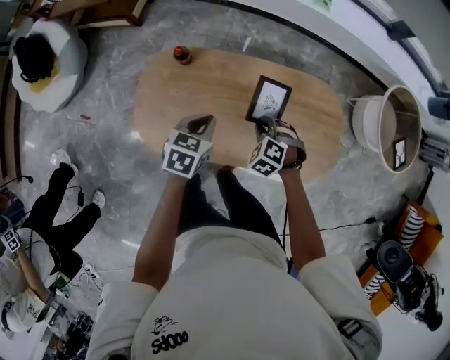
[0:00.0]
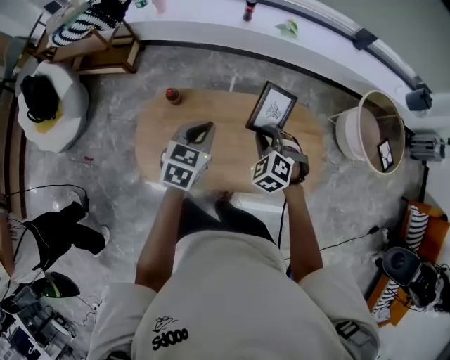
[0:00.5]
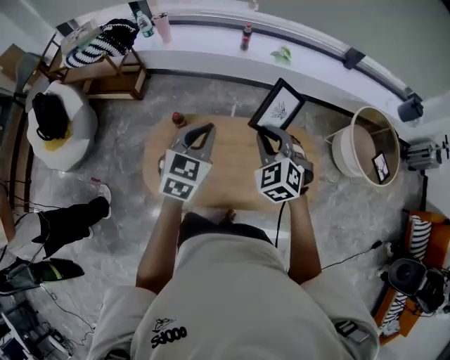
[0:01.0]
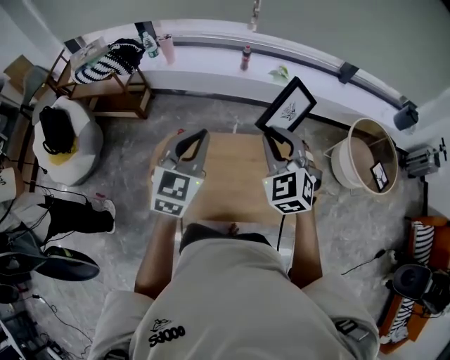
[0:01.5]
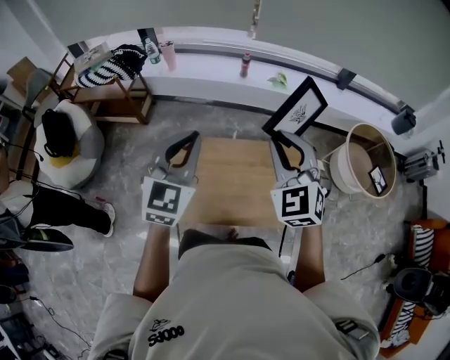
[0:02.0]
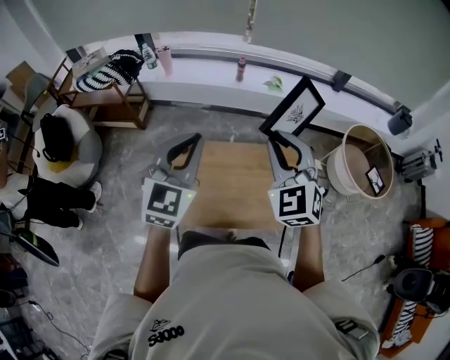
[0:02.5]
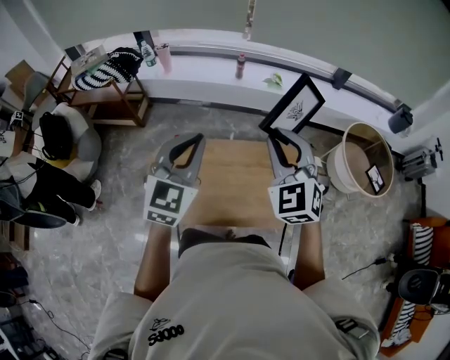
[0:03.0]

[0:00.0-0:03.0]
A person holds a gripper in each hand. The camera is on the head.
0:00.0 to 0:01.5: Both grippers move upward, some 35 cm. The right gripper tilts its fingers roughly 40 degrees upward. The left gripper points its fingers some 30 degrees further upward.
0:01.5 to 0:03.0: The left gripper shifts by about 5 cm. Meanwhile the right gripper shifts roughly 5 cm upward.

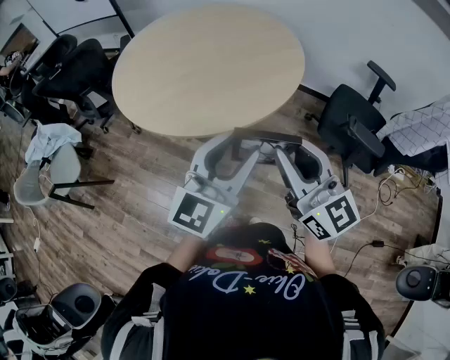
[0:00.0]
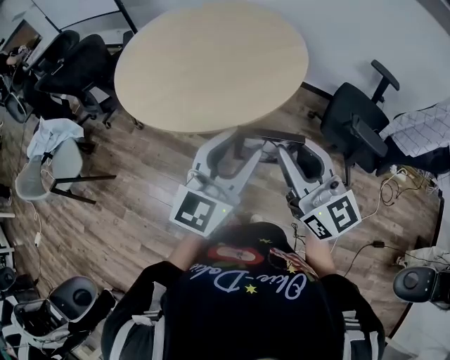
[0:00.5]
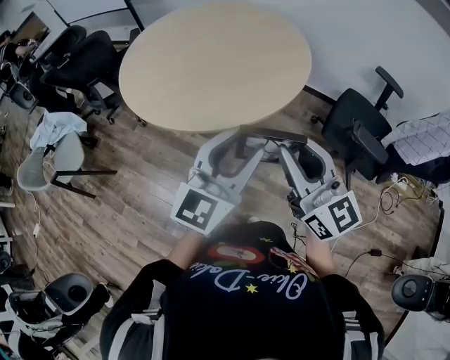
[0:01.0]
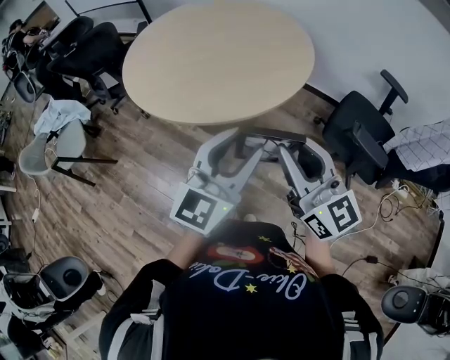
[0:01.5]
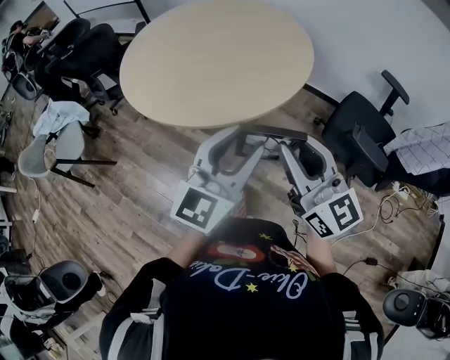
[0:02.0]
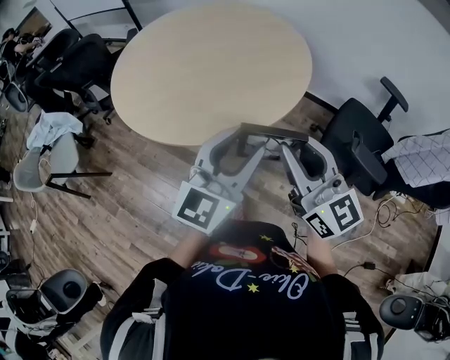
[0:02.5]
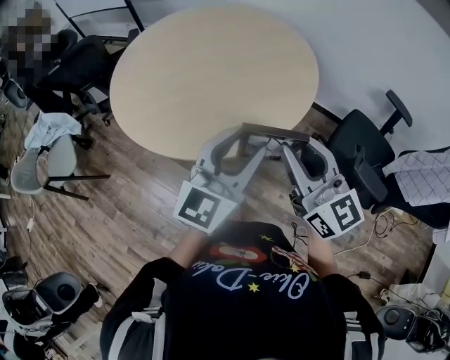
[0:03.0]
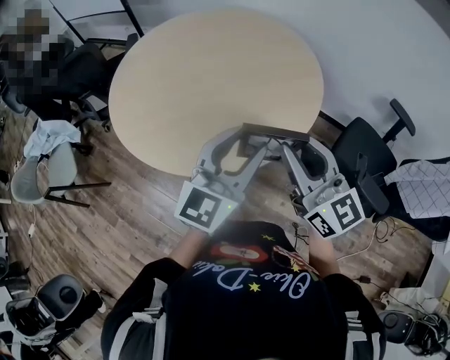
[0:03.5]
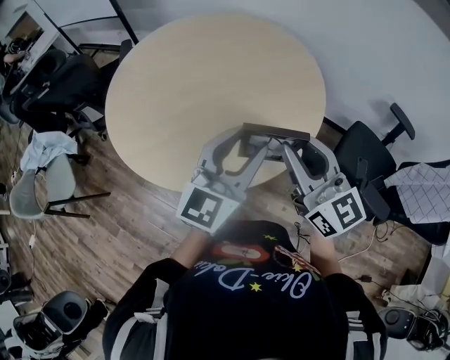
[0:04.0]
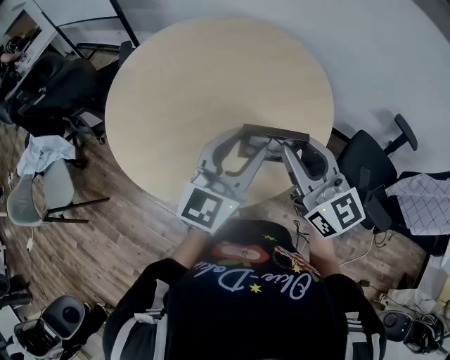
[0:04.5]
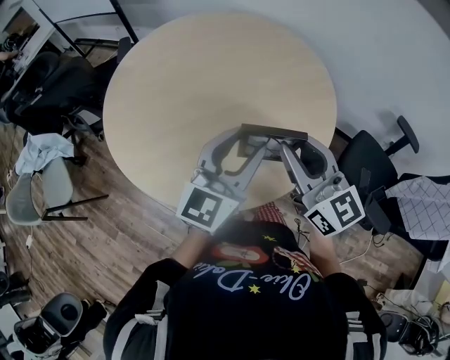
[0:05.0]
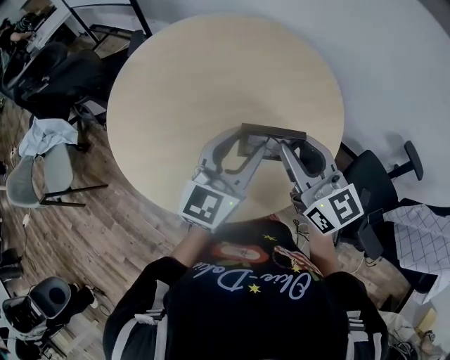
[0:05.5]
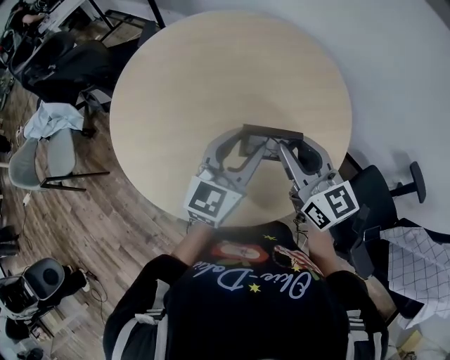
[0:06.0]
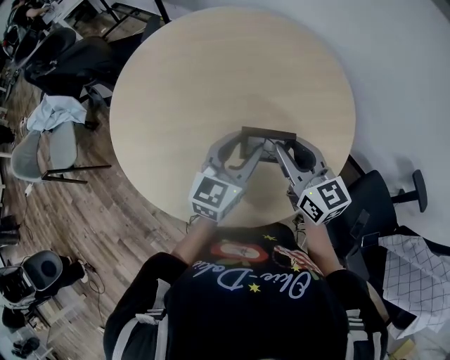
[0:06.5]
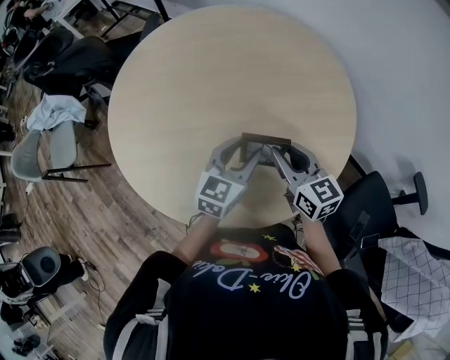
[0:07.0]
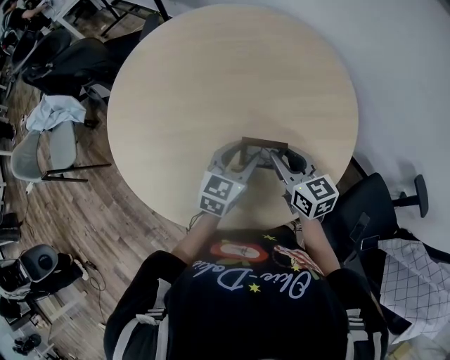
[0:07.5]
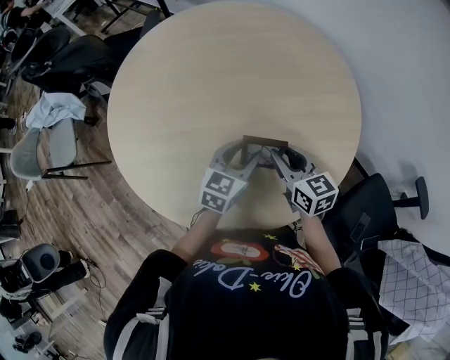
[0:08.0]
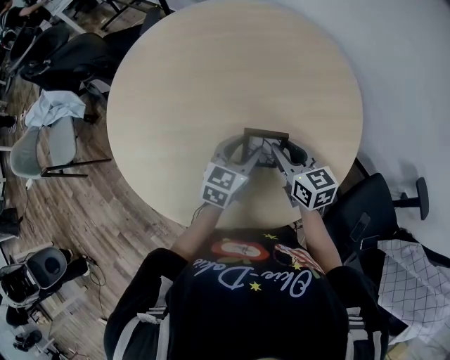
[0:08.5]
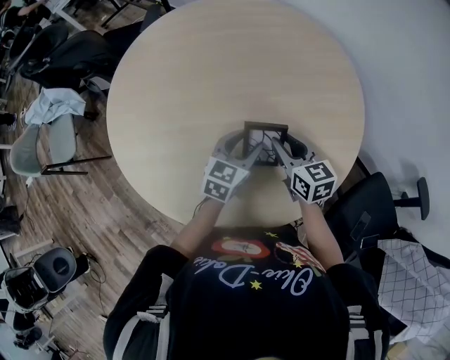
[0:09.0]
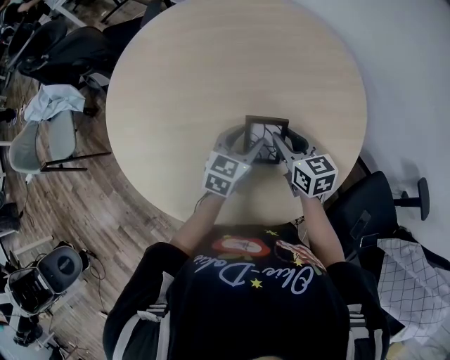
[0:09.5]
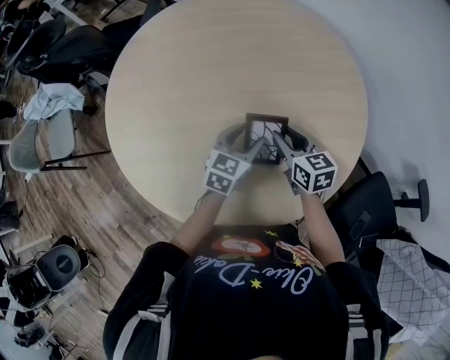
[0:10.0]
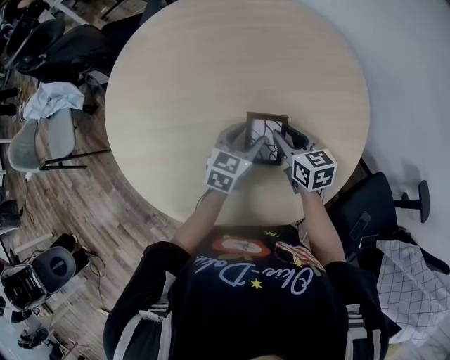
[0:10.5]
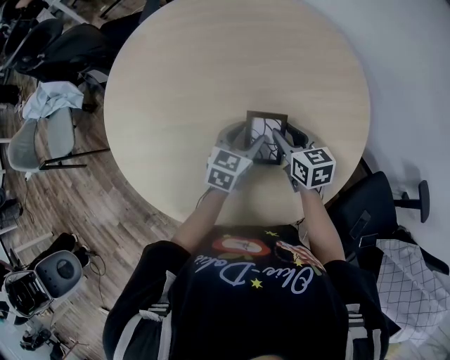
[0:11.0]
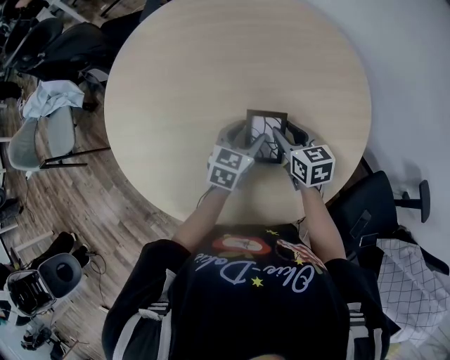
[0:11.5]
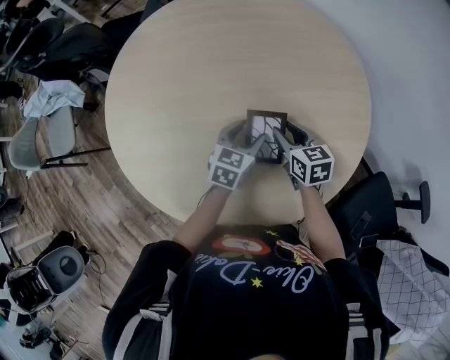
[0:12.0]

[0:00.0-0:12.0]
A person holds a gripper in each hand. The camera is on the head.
0:00.0 to 0:02.0: The grippers both shift to the right by roughly 5 cm.
0:02.0 to 0:04.0: The grippers both shift forward by roughly 25 cm.
0:04.0 to 0:06.0: The grippers both shift forward by approximately 15 cm.
0:06.0 to 0:08.0: Both grippers move downward, roughly 15 cm. The left gripper rotates about 20 degrees, while the right gripper changes its angle by about 20 degrees.
0:08.0 to 0:10.0: The left gripper shifts by about 5 cm. Meanwhile the right gripper is displaced forward by some 5 cm.
0:10.0 to 0:12.0: The grippers stay close to where they were, moving slightly.

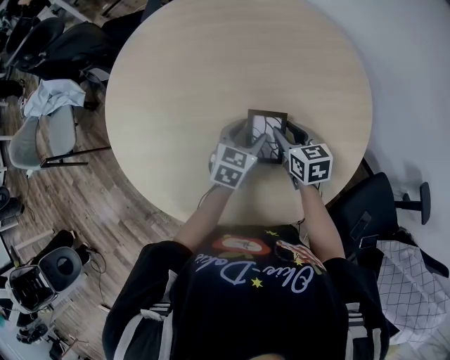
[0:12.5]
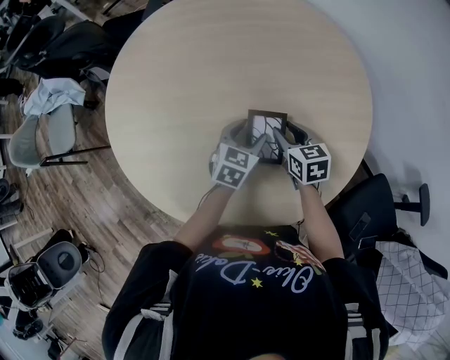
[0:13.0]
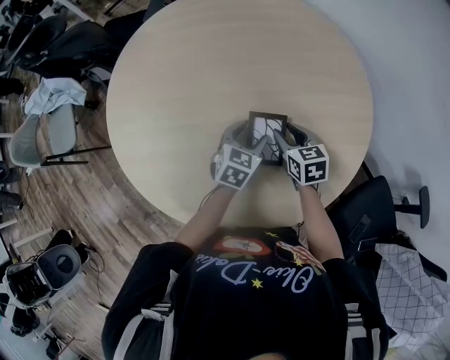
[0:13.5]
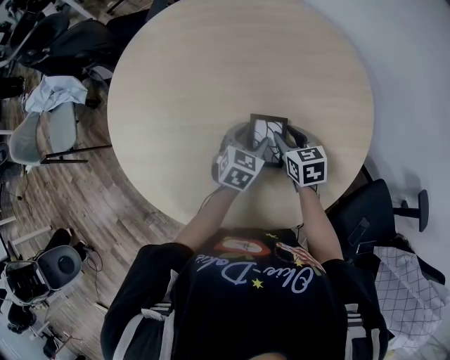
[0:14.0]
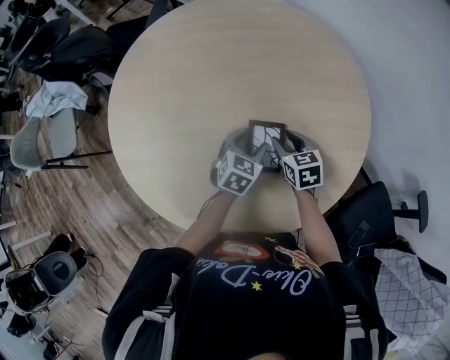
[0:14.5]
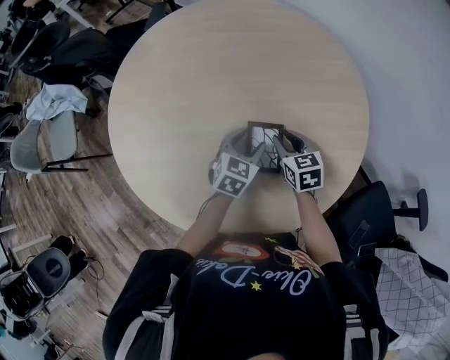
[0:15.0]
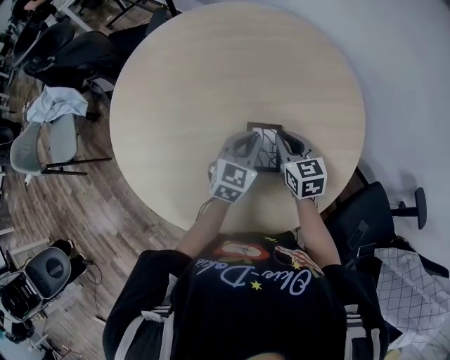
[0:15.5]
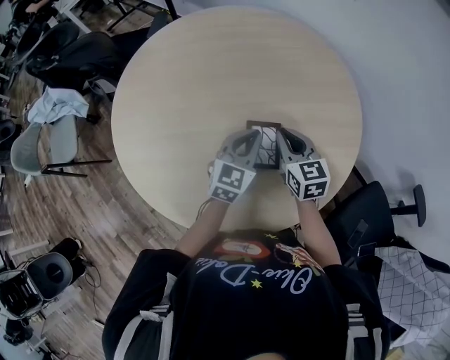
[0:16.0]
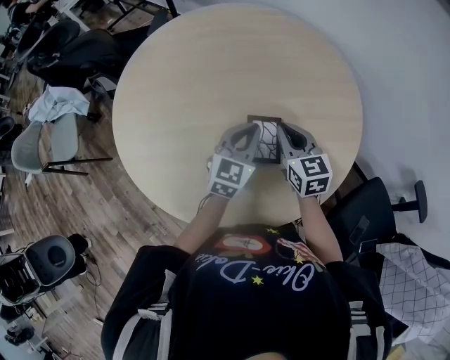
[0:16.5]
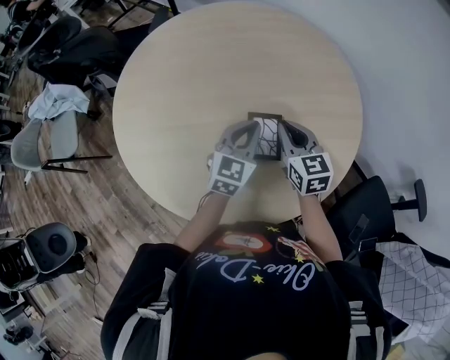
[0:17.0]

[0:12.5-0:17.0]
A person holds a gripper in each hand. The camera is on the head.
0:12.5 to 0:14.5: The grippers move only a little.
0:14.5 to 0:17.0: Both grippers move upward, some 10 cm. The left gripper swivels approximately 20 degrees, and closes up, while the right gripper swivels some 20 degrees, and closes its fingers.
